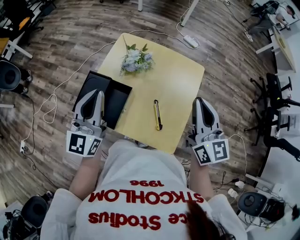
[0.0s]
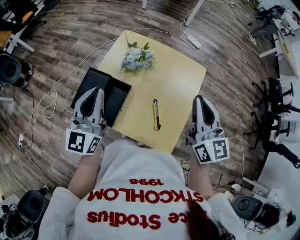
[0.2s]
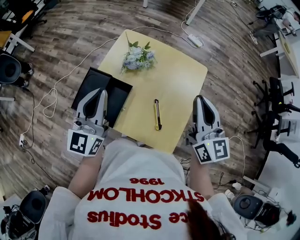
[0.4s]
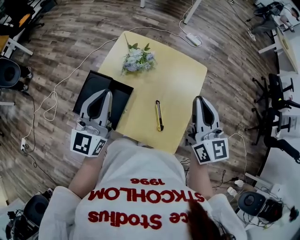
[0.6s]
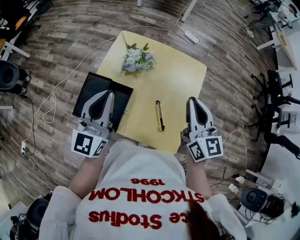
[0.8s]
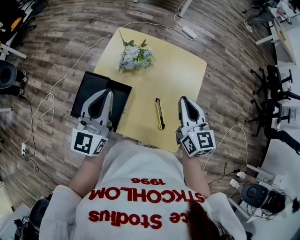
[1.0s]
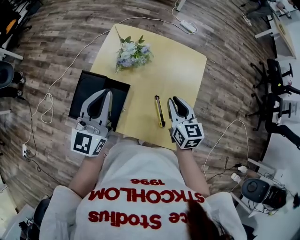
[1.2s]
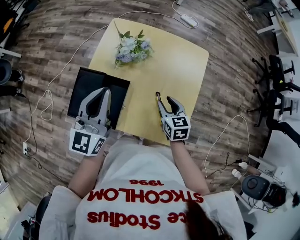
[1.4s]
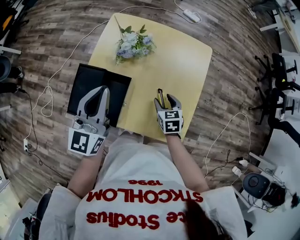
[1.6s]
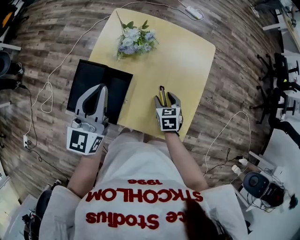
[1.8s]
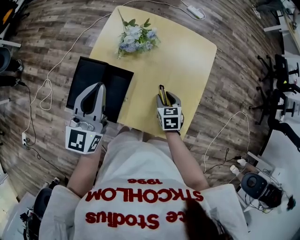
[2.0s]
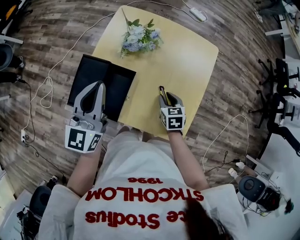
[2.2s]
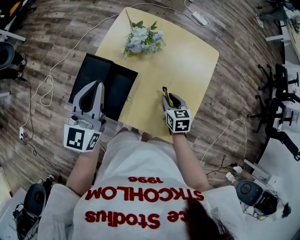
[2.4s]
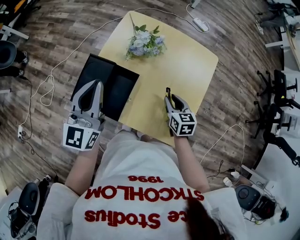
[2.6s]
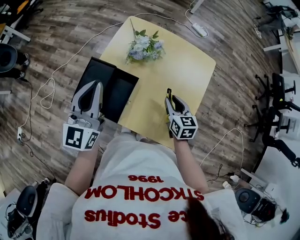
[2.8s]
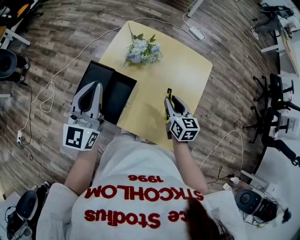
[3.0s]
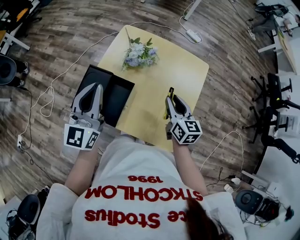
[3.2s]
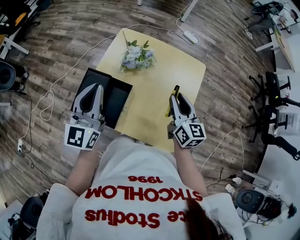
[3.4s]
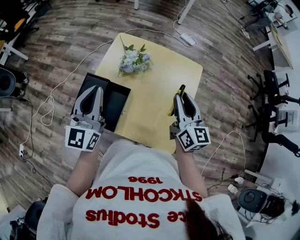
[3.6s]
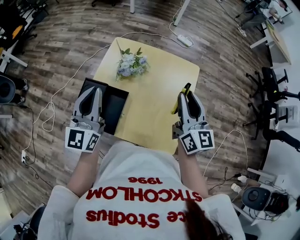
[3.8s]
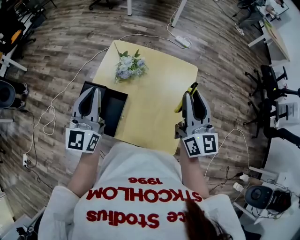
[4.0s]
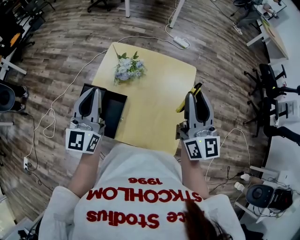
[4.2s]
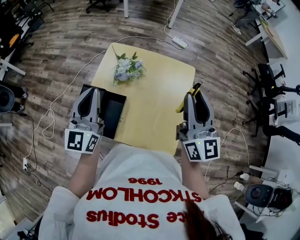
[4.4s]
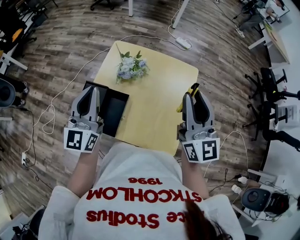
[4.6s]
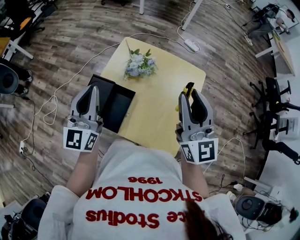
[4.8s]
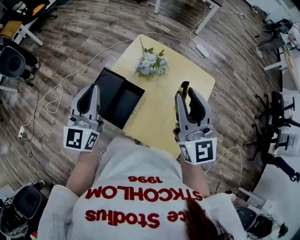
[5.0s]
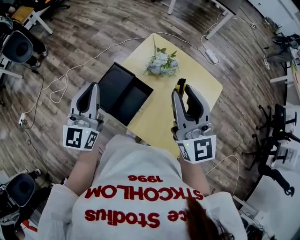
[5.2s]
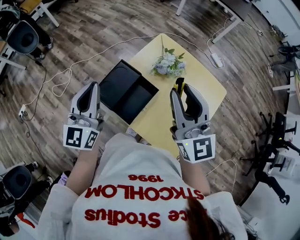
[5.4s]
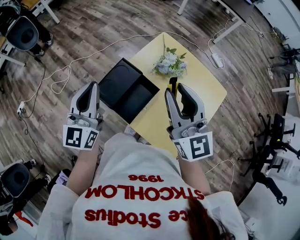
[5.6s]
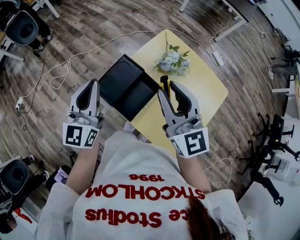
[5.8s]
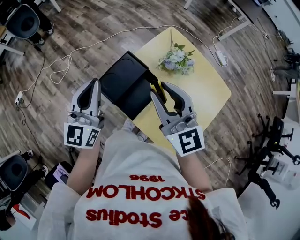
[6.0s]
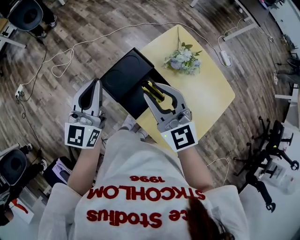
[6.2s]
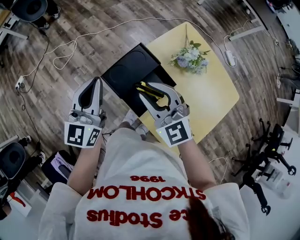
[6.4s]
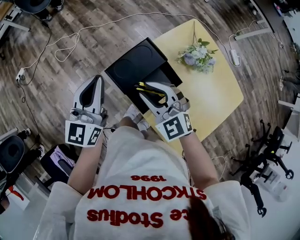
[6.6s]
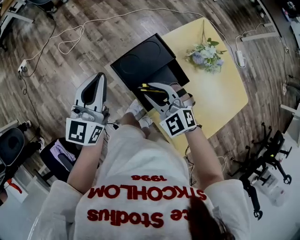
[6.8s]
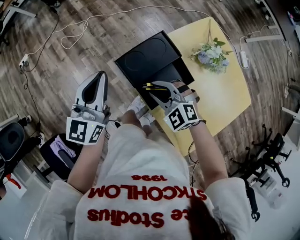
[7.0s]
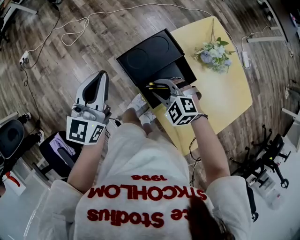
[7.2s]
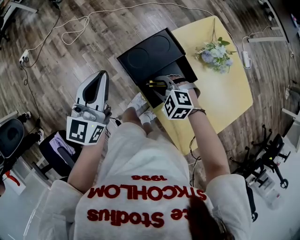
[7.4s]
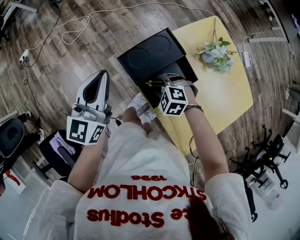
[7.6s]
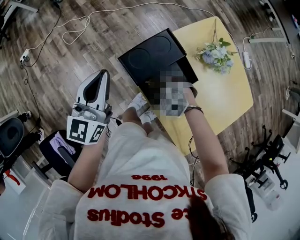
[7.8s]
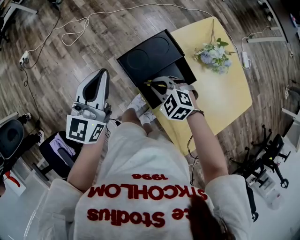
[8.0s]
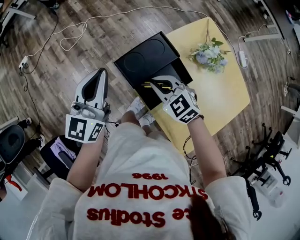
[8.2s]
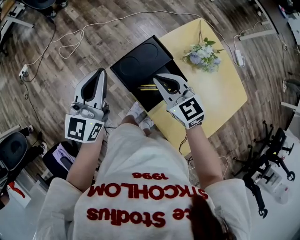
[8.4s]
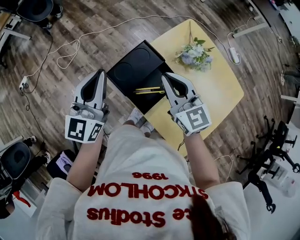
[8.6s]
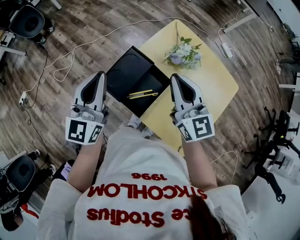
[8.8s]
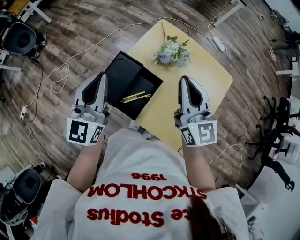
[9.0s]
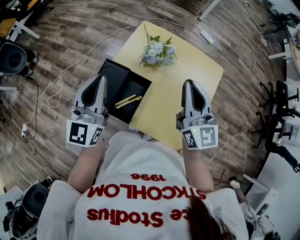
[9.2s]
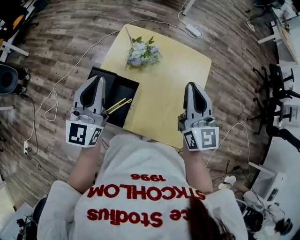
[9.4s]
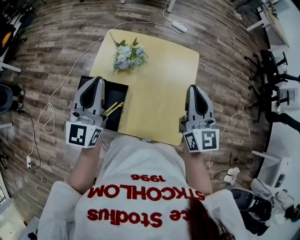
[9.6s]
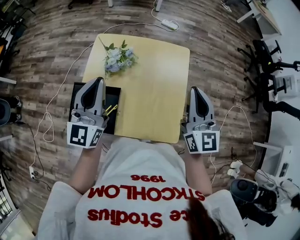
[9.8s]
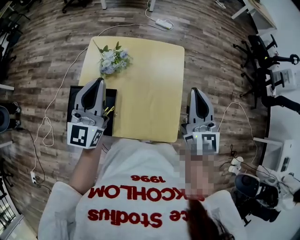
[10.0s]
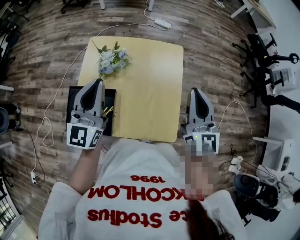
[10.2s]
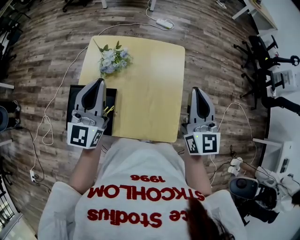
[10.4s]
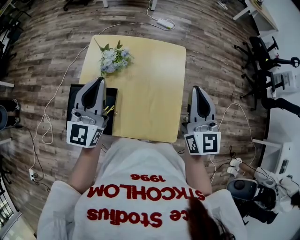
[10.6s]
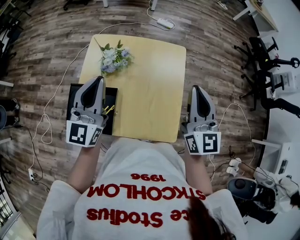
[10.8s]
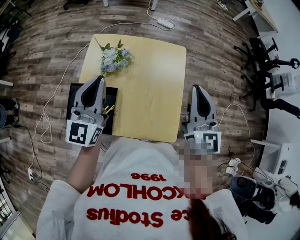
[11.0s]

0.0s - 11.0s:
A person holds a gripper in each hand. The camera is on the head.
0.0s - 1.6s: The left gripper shifts approximately 5 cm downward, while the right gripper shifts about 30 cm downward, tilts its fingers approximately 50 degrees downward, and opens up.
1.6s - 3.2s: The right gripper heads upward, covering approximately 15 cm, swivels approximately 30 degrees, and closes.
3.2s - 4.8s: The right gripper heads upward, covering approximately 25 cm, and changes its angle by some 40 degrees.
4.8s - 6.2s: The left gripper moves roughly 15 cm, and turns by some 20 degrees. Meanwhile the right gripper moves about 30 cm, and changes its angle by roughly 50 degrees.
6.2s - 7.8s: The left gripper goes roughly 5 cm to the left. Meanwhile the right gripper is displaced downward by some 25 cm, and points its fingers some 50 degrees further downward.
7.8s - 9.4s: The right gripper heads upward, covering approximately 30 cm, angles its fingers upward, by about 60 degrees, and closes its fingers, while the left gripper shifts by some 25 cm, and rotates roughly 40 degrees.
9.4s - 11.0s: The two grippers go roughly 10 cm to the right.

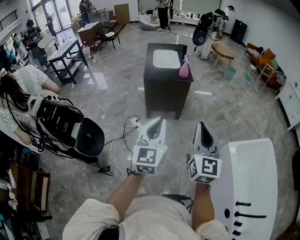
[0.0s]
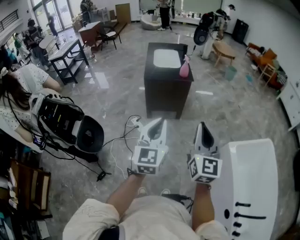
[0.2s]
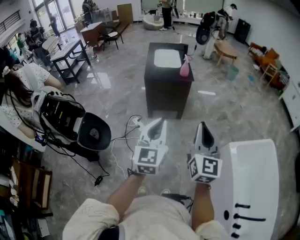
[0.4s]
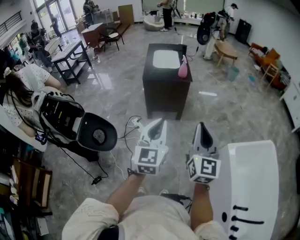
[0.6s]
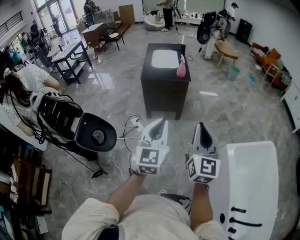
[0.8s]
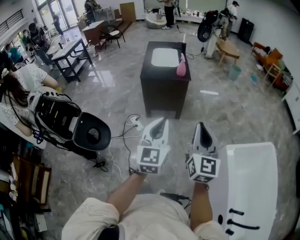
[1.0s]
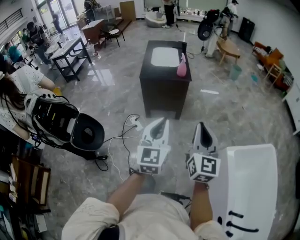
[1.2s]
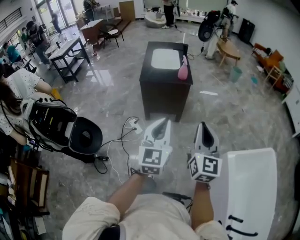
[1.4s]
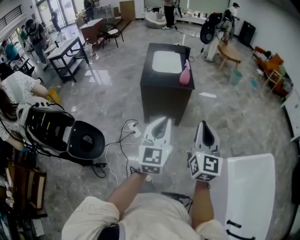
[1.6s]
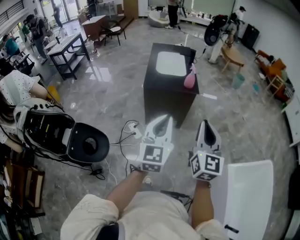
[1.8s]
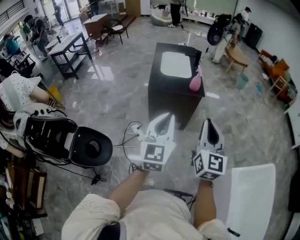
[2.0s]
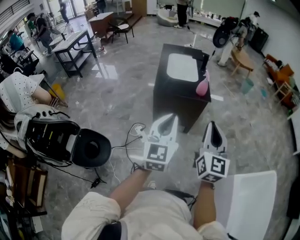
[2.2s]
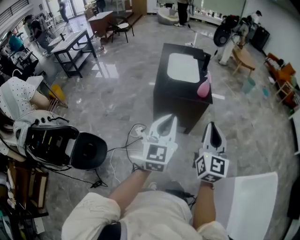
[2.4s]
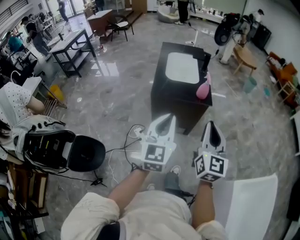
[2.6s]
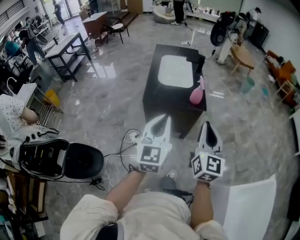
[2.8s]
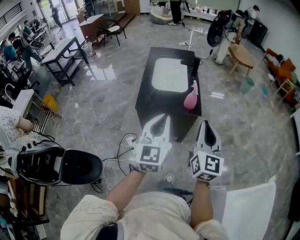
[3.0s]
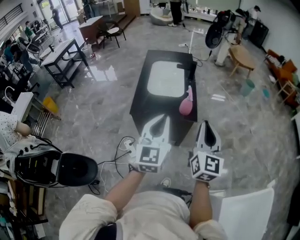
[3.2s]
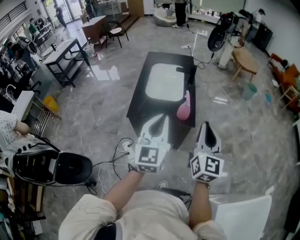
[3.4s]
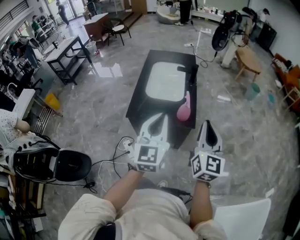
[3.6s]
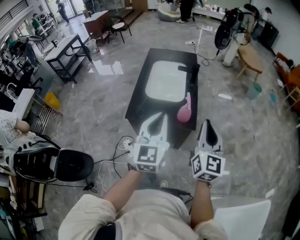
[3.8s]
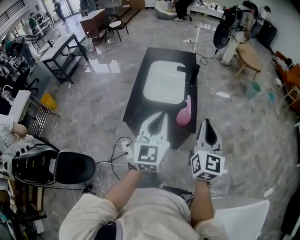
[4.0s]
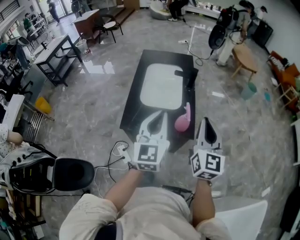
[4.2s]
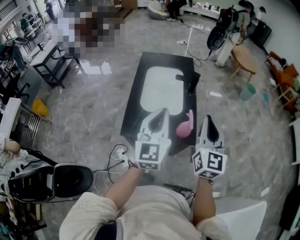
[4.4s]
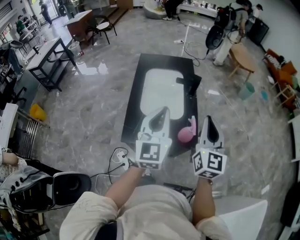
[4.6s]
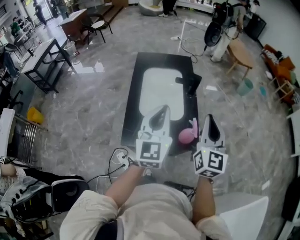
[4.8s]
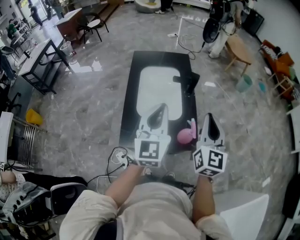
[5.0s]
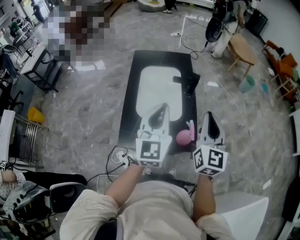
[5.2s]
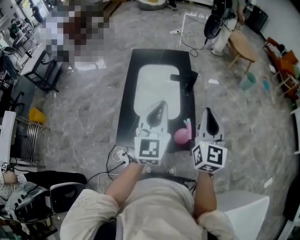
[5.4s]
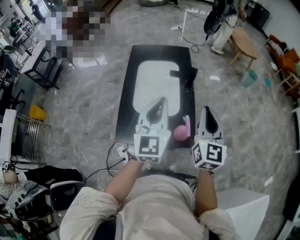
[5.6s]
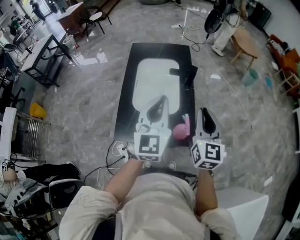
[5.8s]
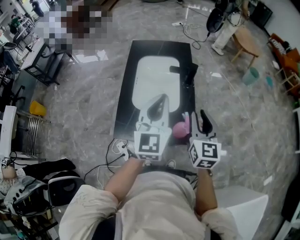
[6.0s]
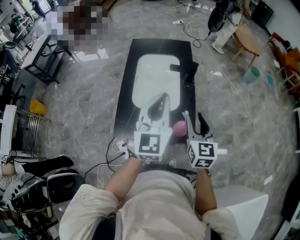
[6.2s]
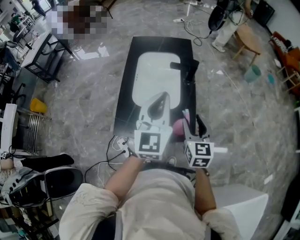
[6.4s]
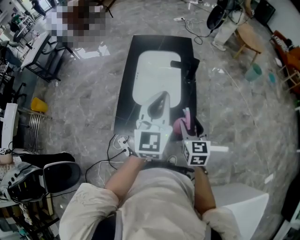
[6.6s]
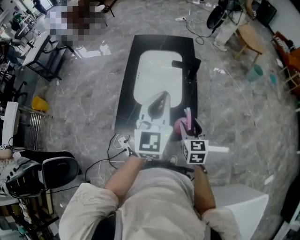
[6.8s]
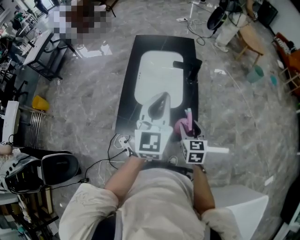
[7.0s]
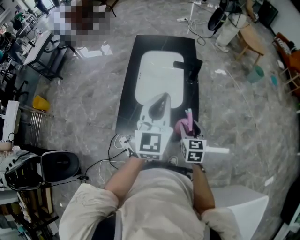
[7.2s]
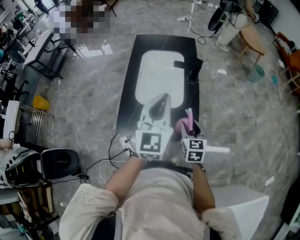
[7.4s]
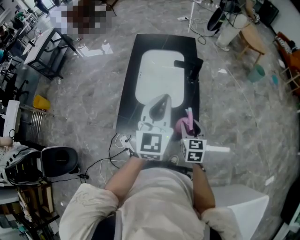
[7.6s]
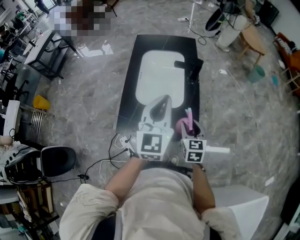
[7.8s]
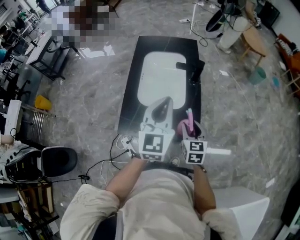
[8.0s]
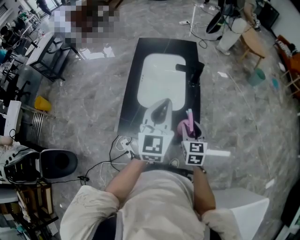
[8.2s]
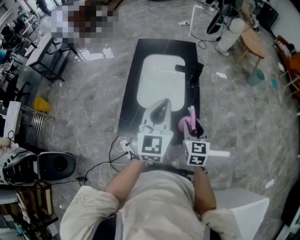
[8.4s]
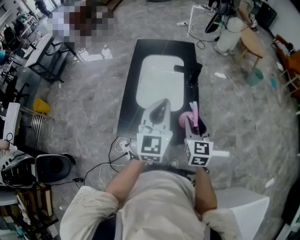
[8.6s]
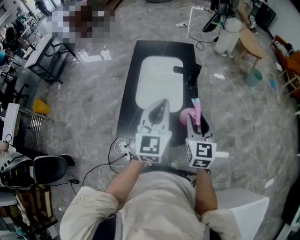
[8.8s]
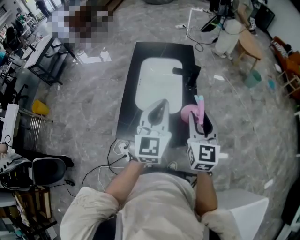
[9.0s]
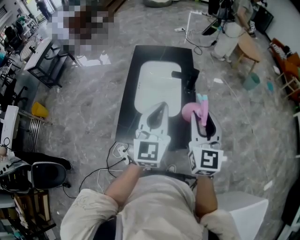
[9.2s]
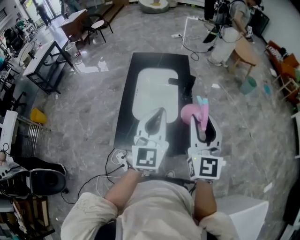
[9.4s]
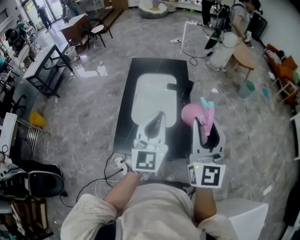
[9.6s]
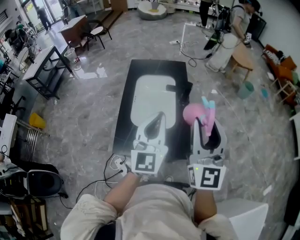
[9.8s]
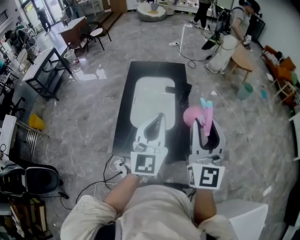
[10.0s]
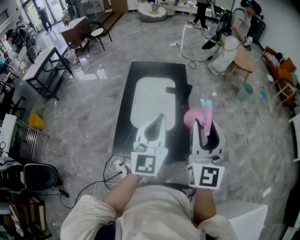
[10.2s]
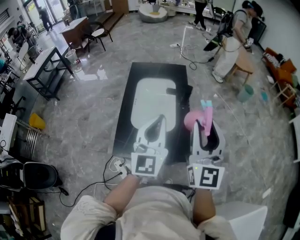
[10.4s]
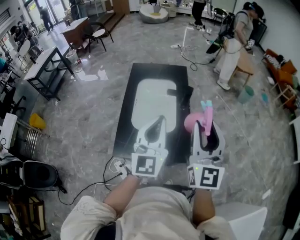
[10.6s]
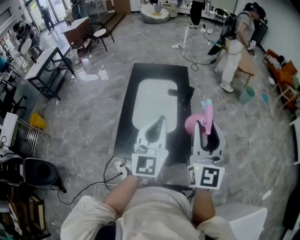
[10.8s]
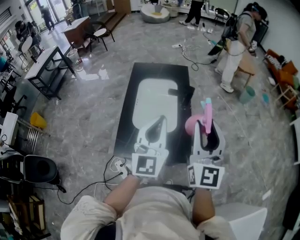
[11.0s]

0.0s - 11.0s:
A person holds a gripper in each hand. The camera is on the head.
0.0s - 1.6s: Both grippers travel together forward, roughly 15 cm.
1.6s - 3.2s: The grippers both shift forward by some 40 cm.
3.2s - 4.8s: The grippers both shift forward by some 25 cm.
4.8s - 6.2s: The left gripper moves to the right, about 5 cm. The right gripper goes approximately 10 cm downward, swivels approximately 20 degrees, and opens up.
6.2s - 7.8s: The right gripper heads downward, covering approximately 10 cm.
7.8s - 9.4s: The right gripper shifts approximately 25 cm upward, and tips its fingers upward by approximately 30 degrees.
9.4s - 11.0s: The grippers move only a little.

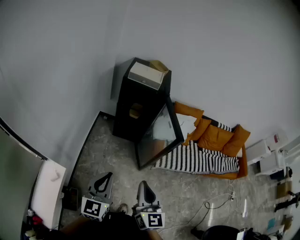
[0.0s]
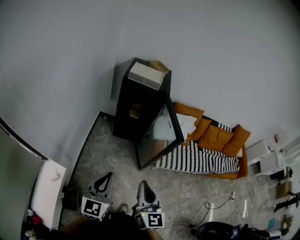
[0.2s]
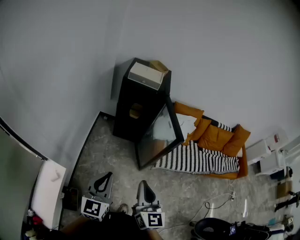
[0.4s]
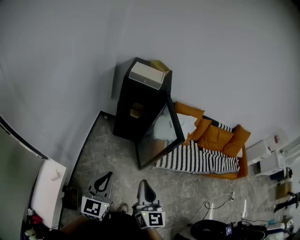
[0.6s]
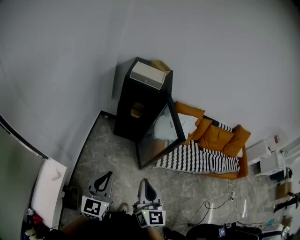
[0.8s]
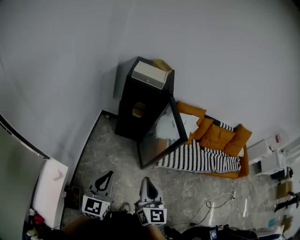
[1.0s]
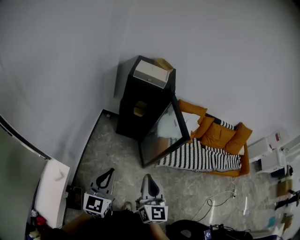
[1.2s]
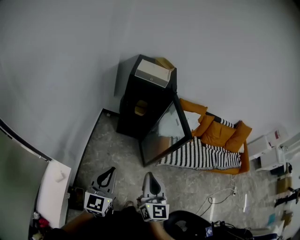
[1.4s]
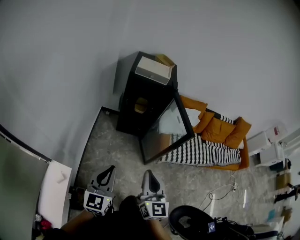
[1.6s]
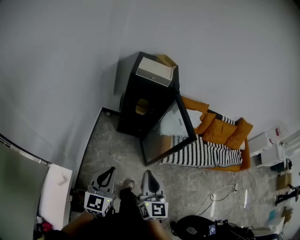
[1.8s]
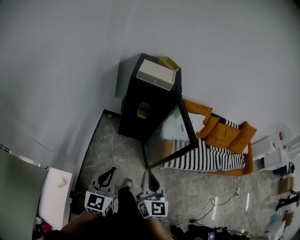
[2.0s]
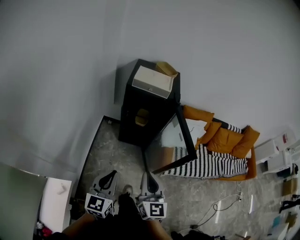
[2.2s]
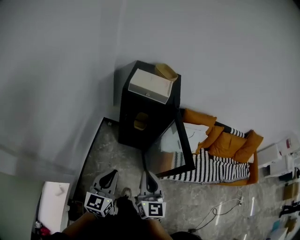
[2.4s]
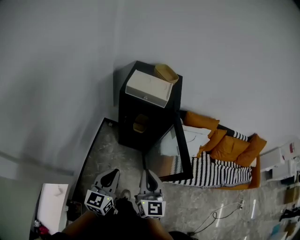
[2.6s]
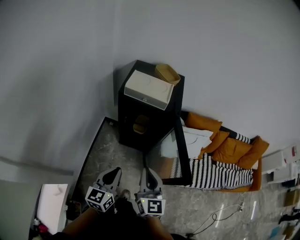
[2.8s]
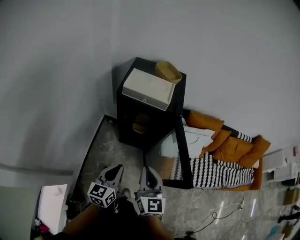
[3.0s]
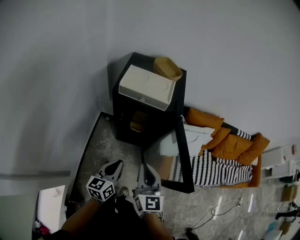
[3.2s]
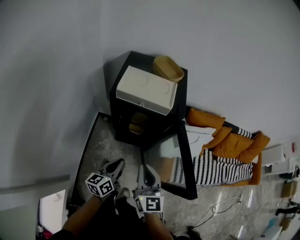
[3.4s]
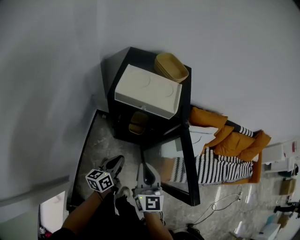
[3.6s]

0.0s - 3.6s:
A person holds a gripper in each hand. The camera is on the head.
0.0s - 1.8s: The right gripper ends up some 10 cm from where it was.
1.8s - 3.6s: The right gripper moves roughly 40 cm.
